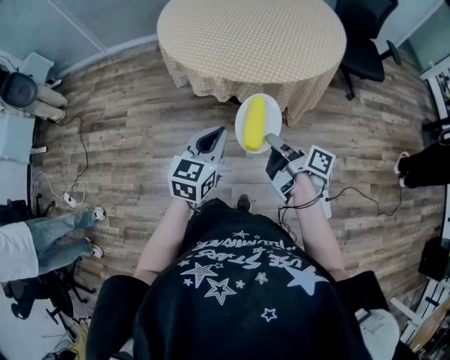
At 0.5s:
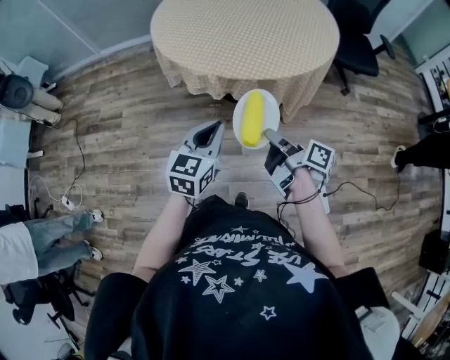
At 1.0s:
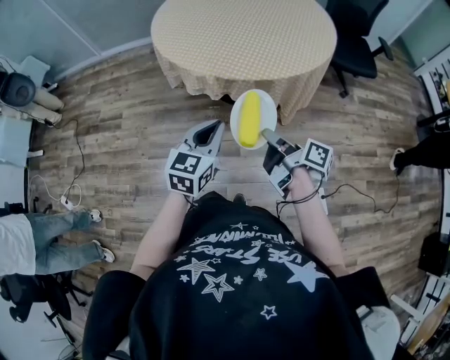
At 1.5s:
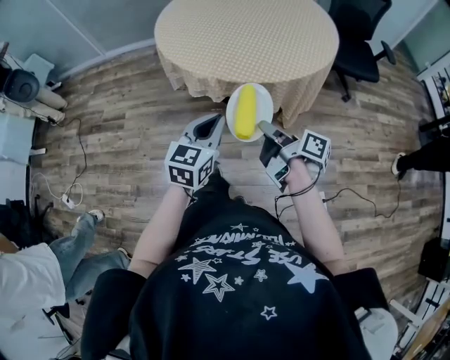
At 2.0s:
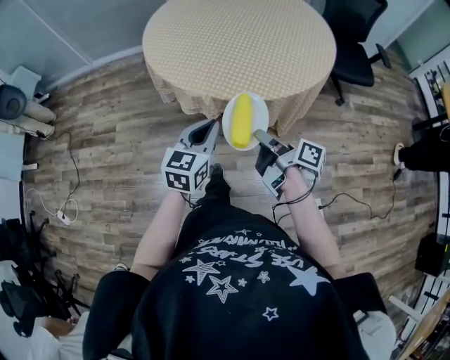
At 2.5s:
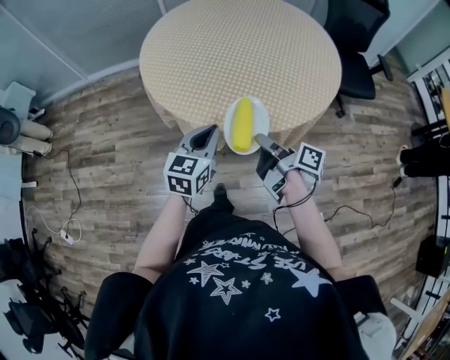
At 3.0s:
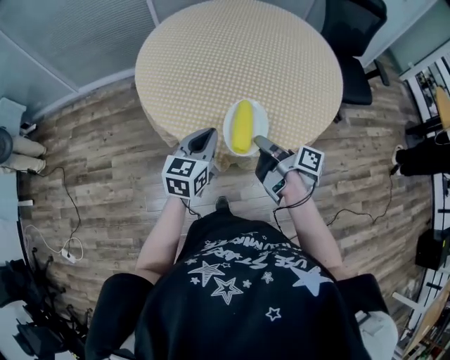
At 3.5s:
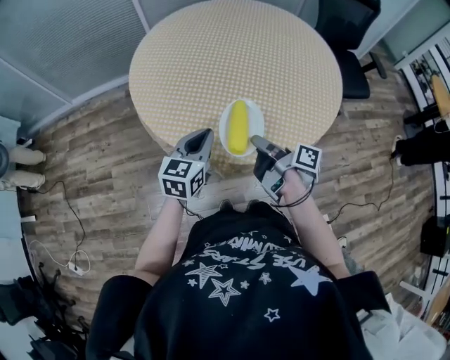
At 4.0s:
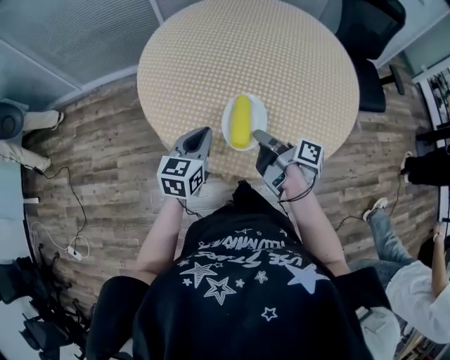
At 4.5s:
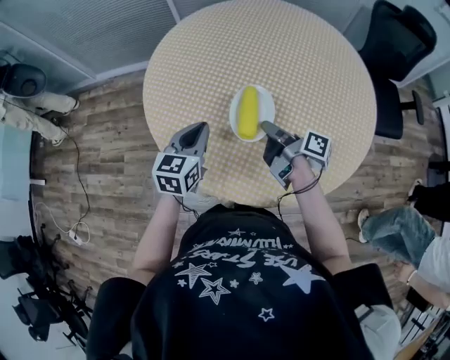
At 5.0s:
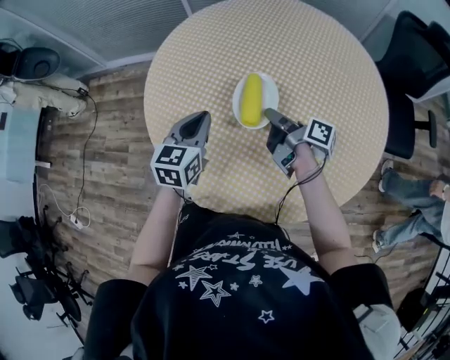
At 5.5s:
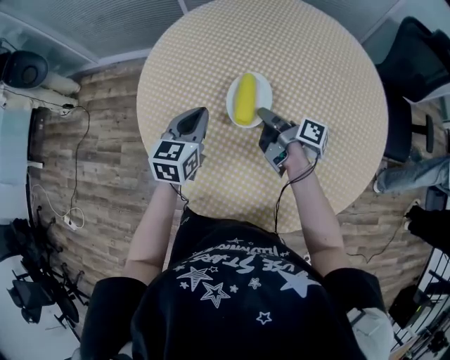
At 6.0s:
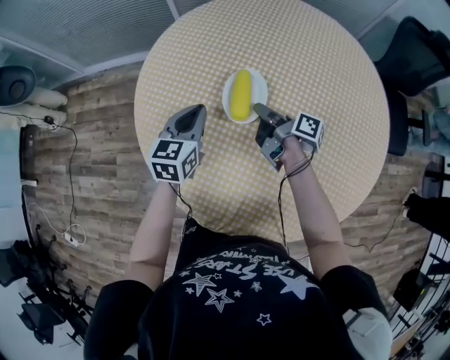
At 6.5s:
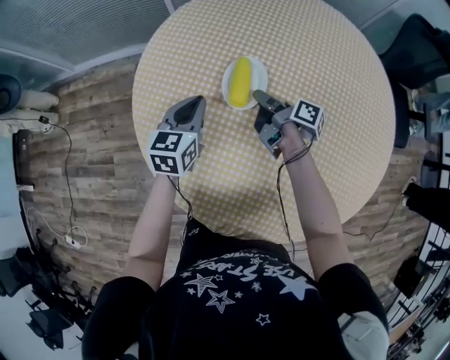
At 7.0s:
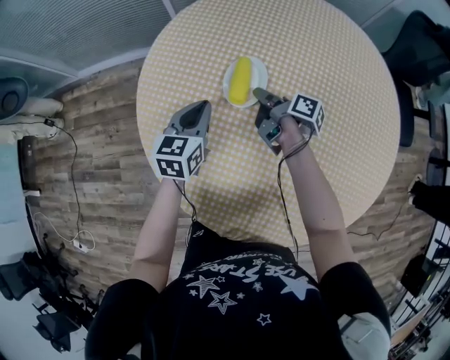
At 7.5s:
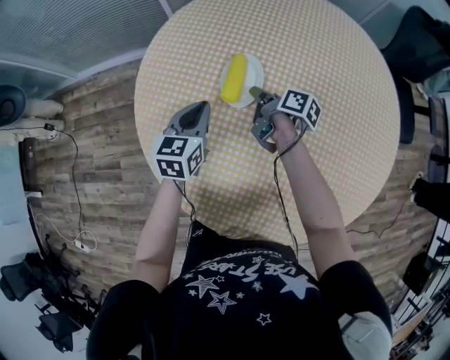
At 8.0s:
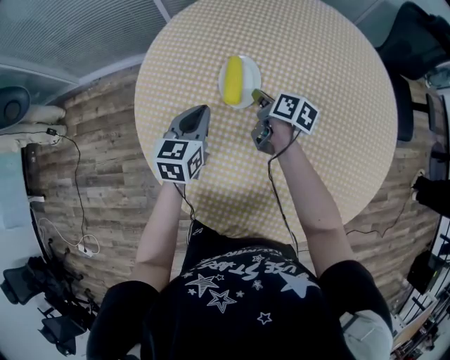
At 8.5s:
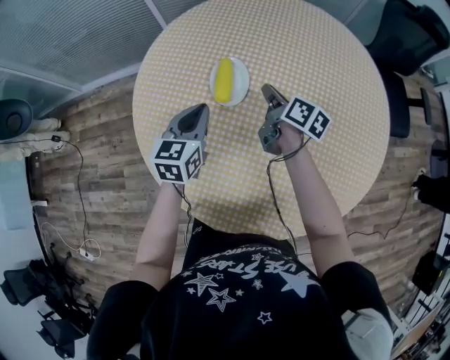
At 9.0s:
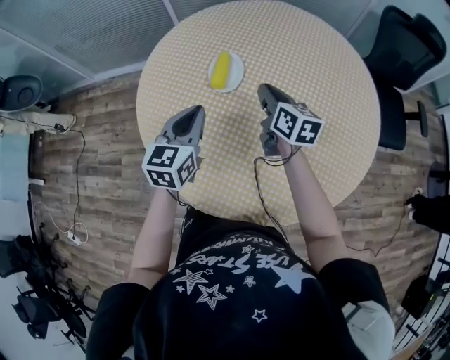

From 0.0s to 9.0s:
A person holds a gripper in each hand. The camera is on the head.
From 0.0s to 2.0s: The two grippers go about 10 cm forward.
From 2.0s to 4.5s: Both grippers move forward, roughly 40 cm.
From 4.5s to 7.0s: Both grippers move forward, about 25 cm.
From 7.0s to 9.0s: The right gripper shifts roughly 20 cm upward, backward and to the right, and rolls counterclockwise, seen from behind, by about 50 degrees, while the left gripper shifts roughly 20 cm backward, upward and to the right.

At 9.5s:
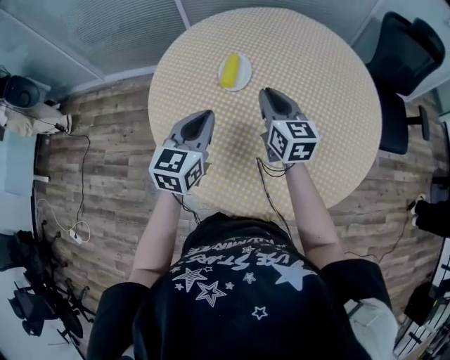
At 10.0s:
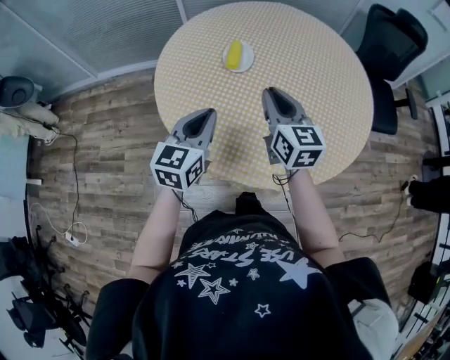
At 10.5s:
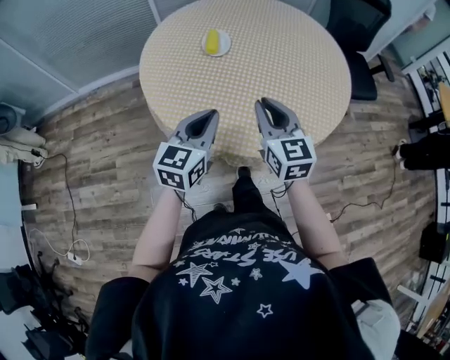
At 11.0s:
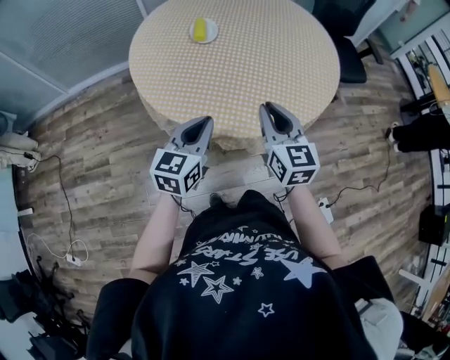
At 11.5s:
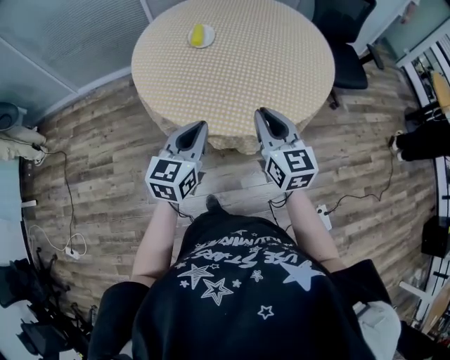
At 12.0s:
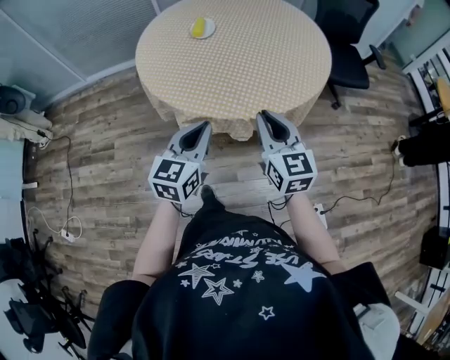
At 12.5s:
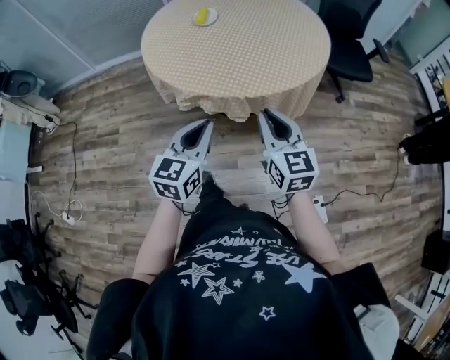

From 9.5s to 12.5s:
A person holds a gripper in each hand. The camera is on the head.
From 9.5s to 11.0s: Both grippers move backward, some 30 cm.
From 11.0s to 12.5s: Both grippers travel together backward and to the right, roughly 20 cm.

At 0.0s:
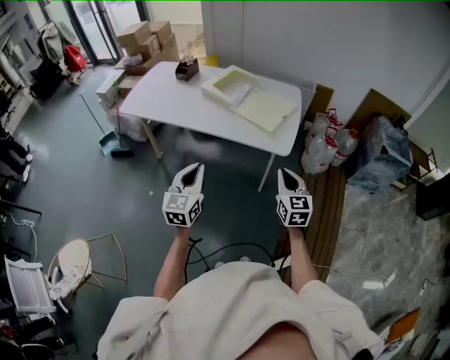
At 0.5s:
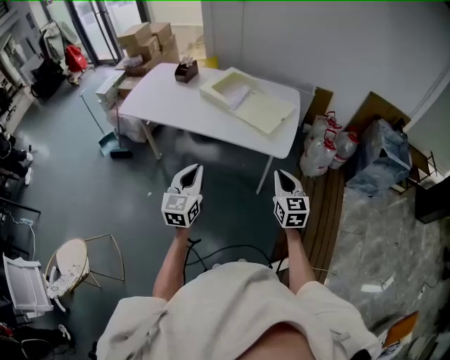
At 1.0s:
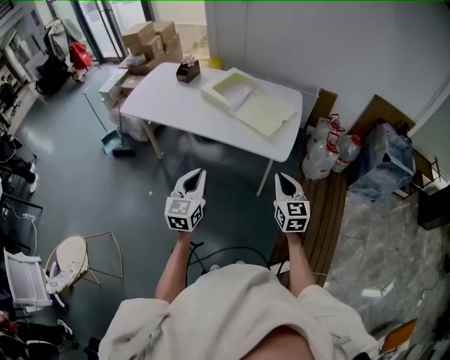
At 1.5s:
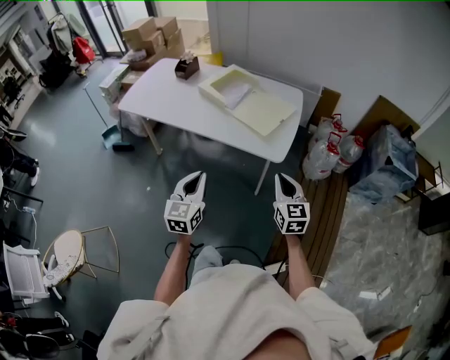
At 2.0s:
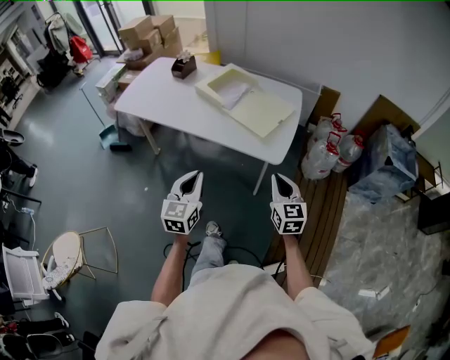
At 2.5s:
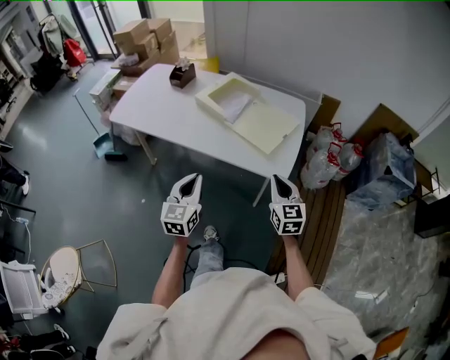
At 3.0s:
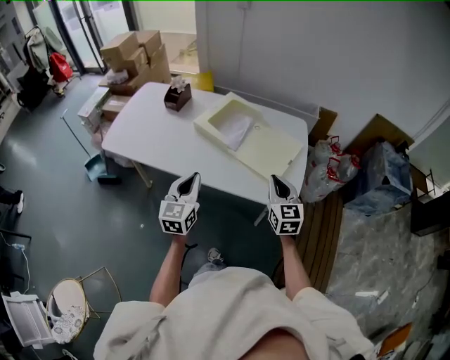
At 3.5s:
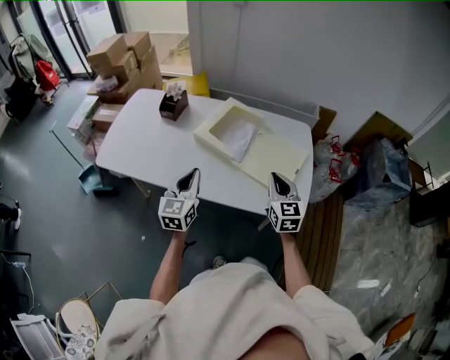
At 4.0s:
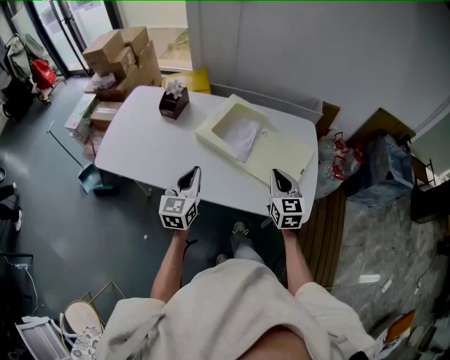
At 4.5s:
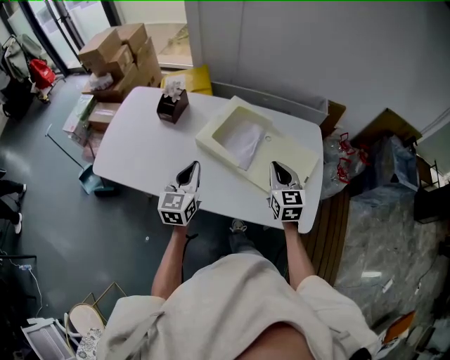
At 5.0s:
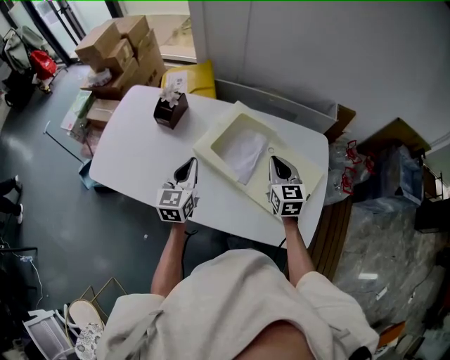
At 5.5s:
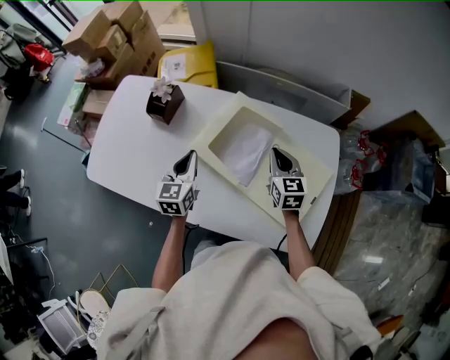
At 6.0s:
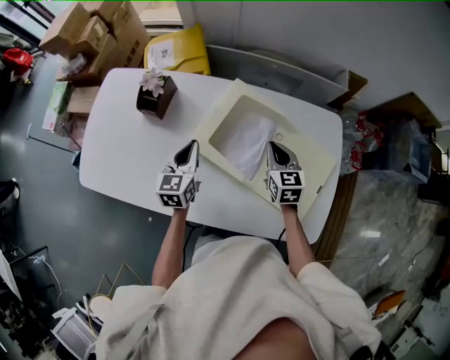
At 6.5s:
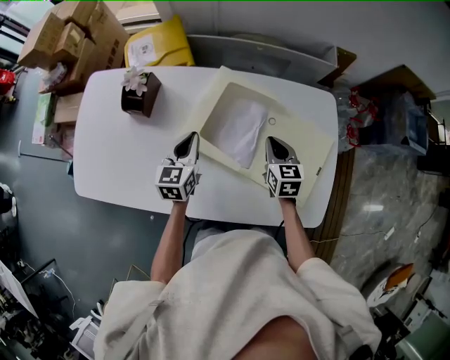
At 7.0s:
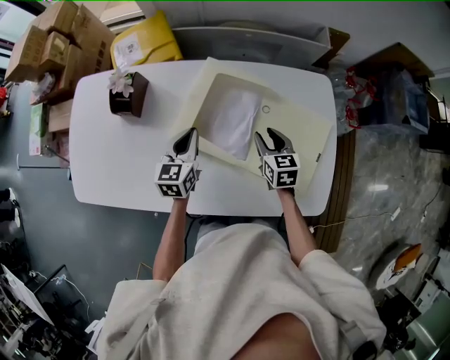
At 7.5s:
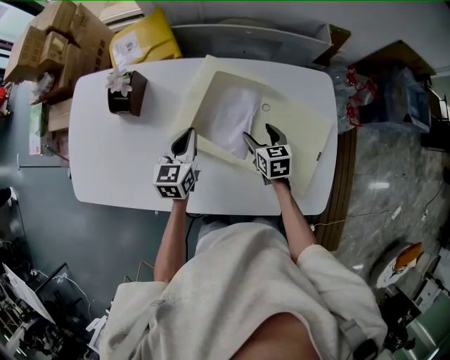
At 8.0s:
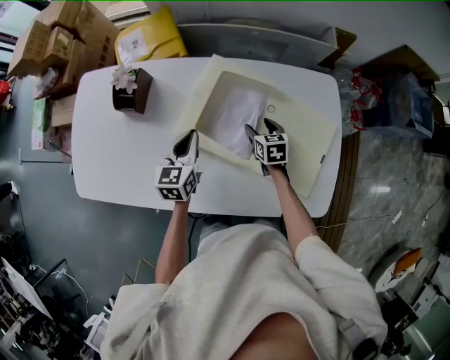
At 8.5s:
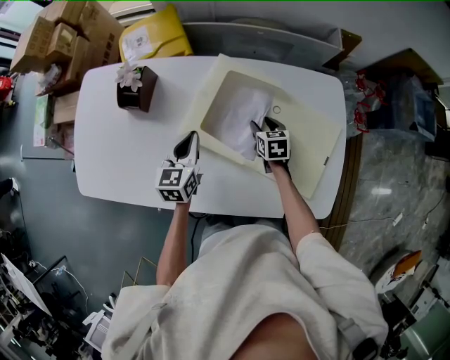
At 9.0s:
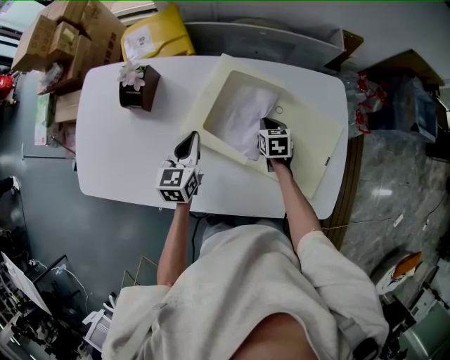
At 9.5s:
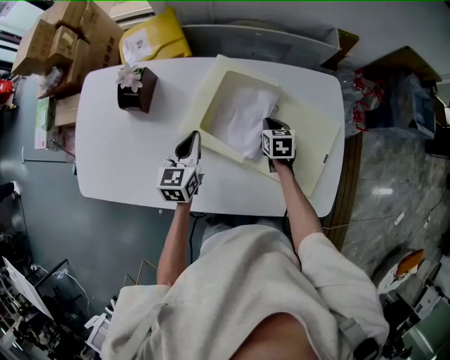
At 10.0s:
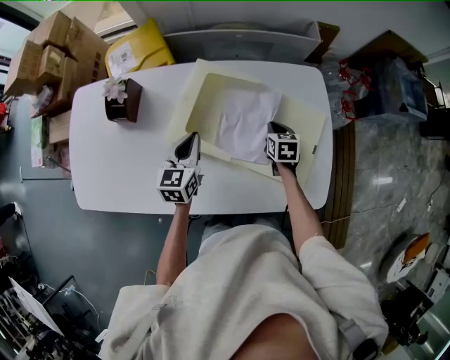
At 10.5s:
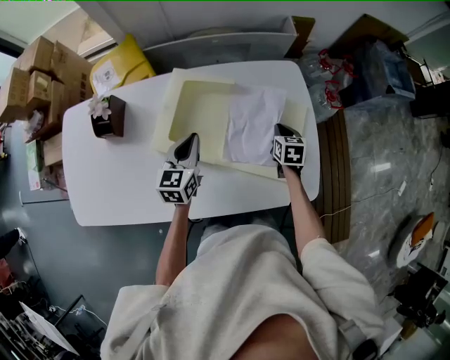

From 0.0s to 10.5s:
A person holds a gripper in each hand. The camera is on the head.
From 0.0s to 2.0s: The right gripper heads forward and to the right, covering about 5 cm, while the left gripper travels to the right by some 5 cm.
From 2.0s to 4.0s: Both grippers move forward and to the left, roughly 40 cm.
From 4.0s to 6.5s: The grippers both shift forward and downward by some 30 cm. The right gripper rotates about 20 degrees.
From 6.5s to 8.5s: The right gripper travels downward by some 10 cm, and opens its fingers.
From 8.5s to 10.5s: The left gripper moves to the right, approximately 10 cm; the right gripper moves to the right, about 20 cm, turns by approximately 20 degrees, and closes up.

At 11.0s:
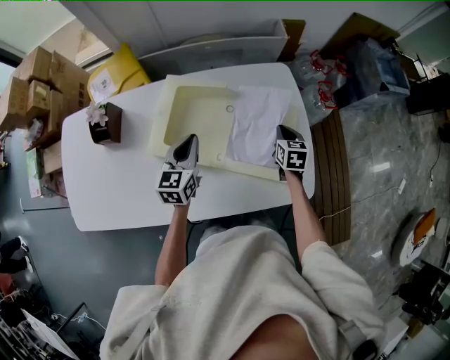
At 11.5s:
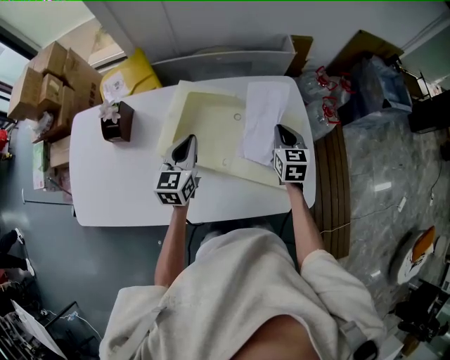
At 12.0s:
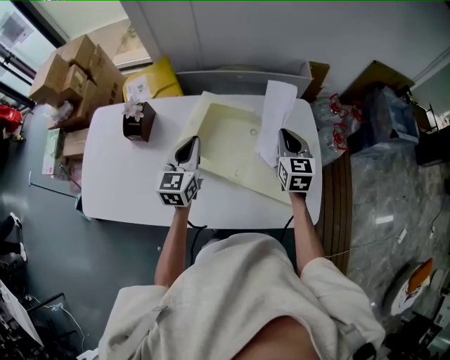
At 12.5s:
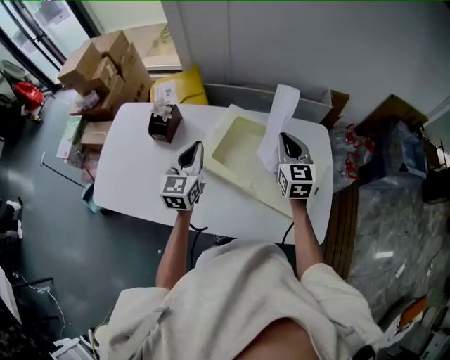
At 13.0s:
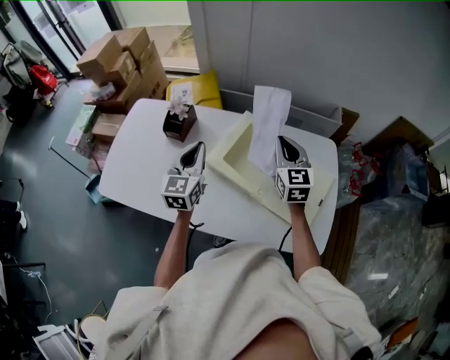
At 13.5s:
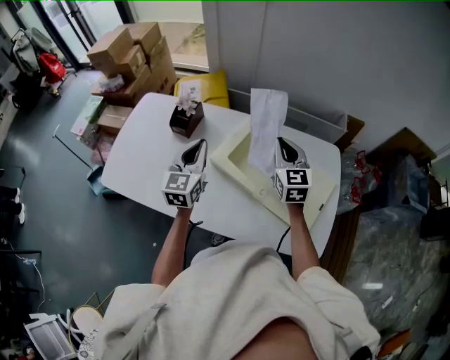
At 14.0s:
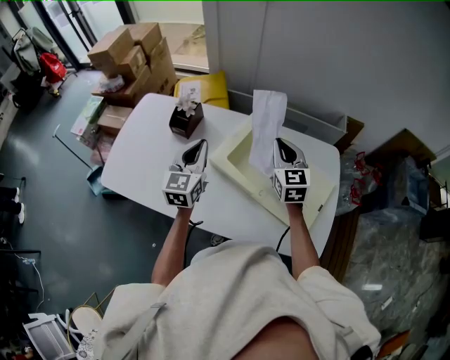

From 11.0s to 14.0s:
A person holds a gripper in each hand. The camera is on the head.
From 11.0s to 12.5s: The right gripper is displaced upward and to the left by some 30 cm, and rotates some 40 degrees, while the left gripper is displaced to the left and upward by roughly 20 cm, and changes its angle by approximately 20 degrees.
From 12.5s to 14.0s: The left gripper ends up some 5 cm from where it was. Meanwhile the right gripper moves to the left, about 10 cm.

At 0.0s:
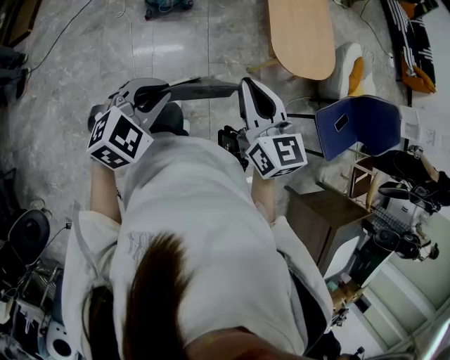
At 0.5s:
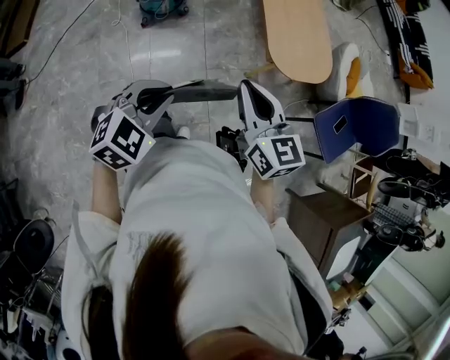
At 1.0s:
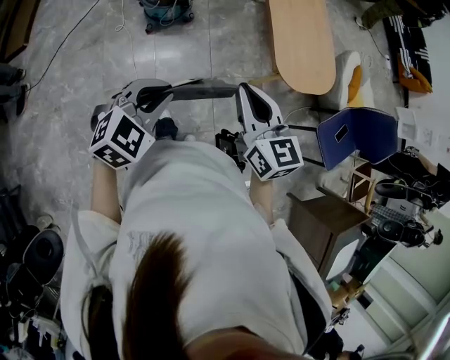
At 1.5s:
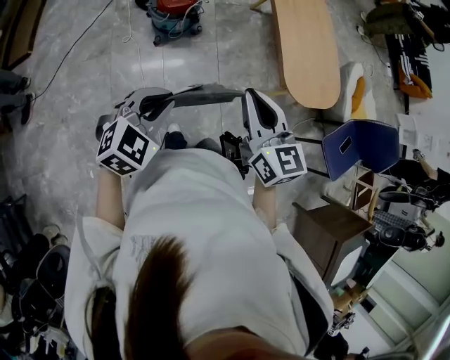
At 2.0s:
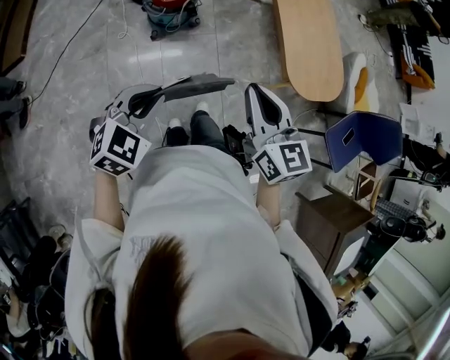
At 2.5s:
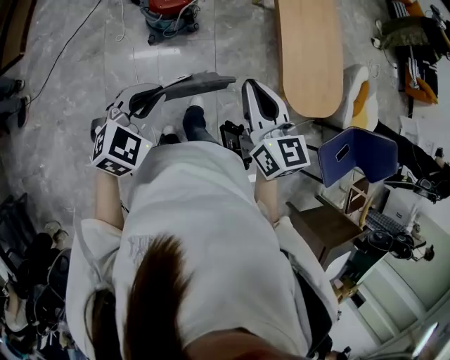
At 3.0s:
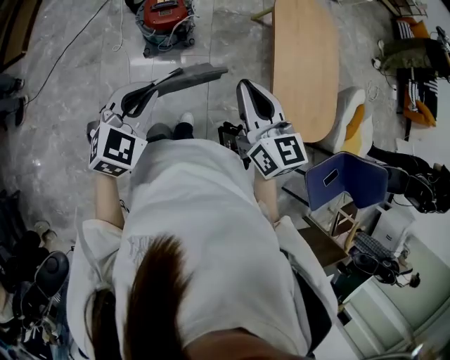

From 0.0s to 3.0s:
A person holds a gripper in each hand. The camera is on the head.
From 0.0s to 1.5s: Both grippers move to the left and forward, roughly 20 cm.
From 1.5s to 3.0s: The two grippers go approximately 25 cm forward.
